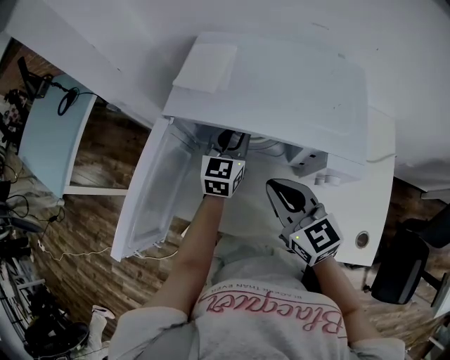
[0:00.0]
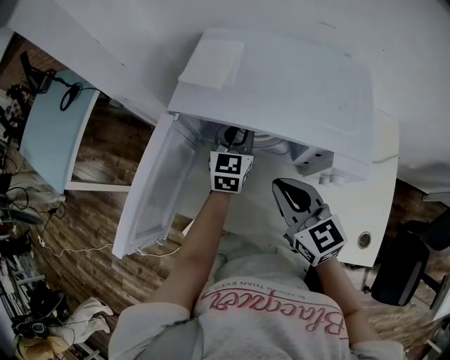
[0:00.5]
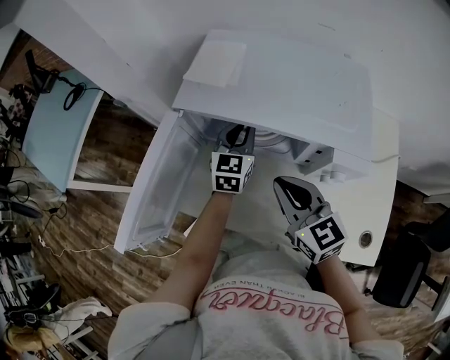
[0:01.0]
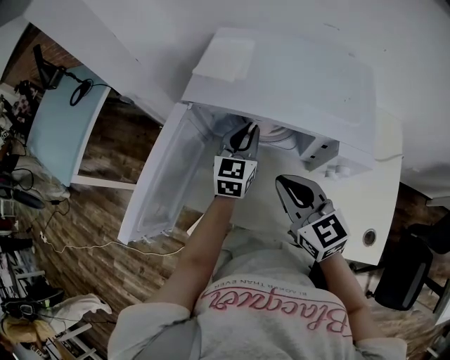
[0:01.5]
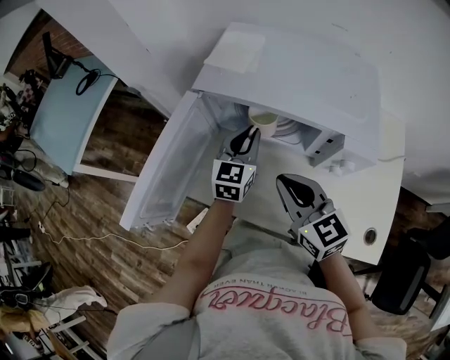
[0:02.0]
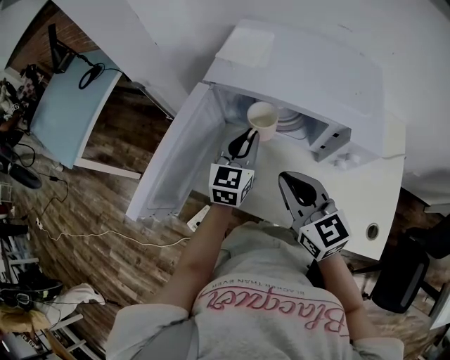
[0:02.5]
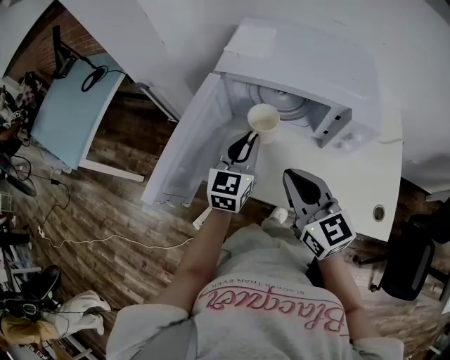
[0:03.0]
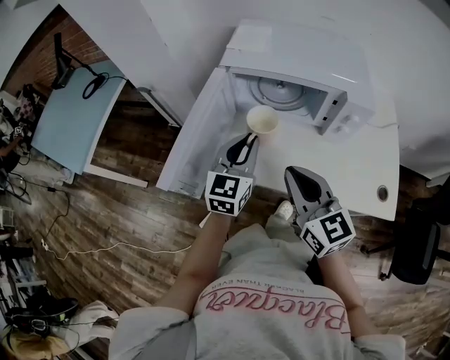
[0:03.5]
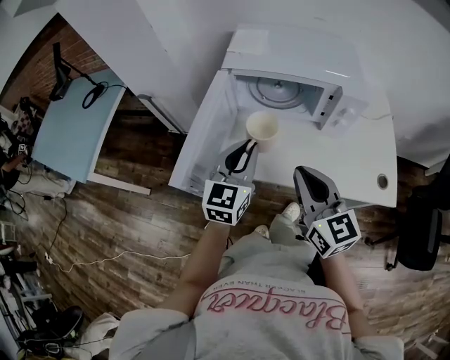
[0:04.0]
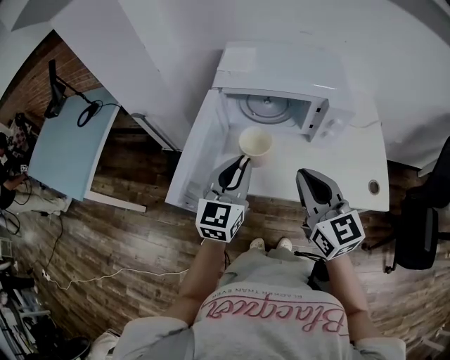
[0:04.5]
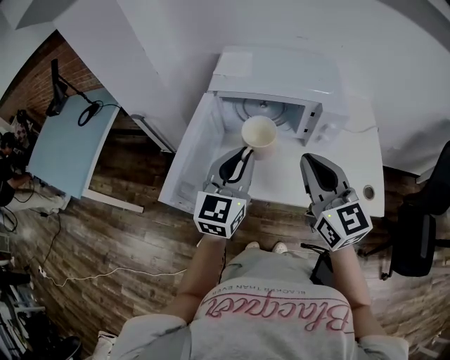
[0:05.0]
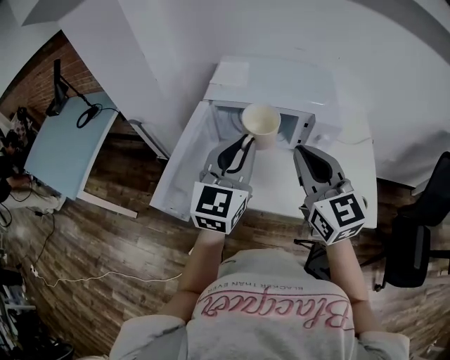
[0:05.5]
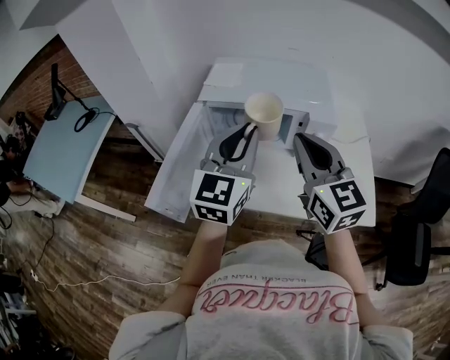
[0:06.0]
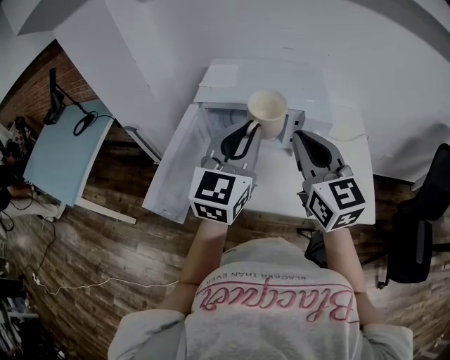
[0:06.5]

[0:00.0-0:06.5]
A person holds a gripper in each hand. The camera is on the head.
0:00.0 to 0:02.0: The left gripper moves backward, roughly 5 cm.
0:02.0 to 0:04.5: The left gripper goes roughly 25 cm backward, upward and to the left, while the right gripper shifts about 15 cm backward and upward, and changes its angle by approximately 20 degrees.
0:04.5 to 0:06.5: The left gripper is displaced upward and to the right by about 15 cm. The right gripper heads upward, forward and to the right, covering approximately 10 cm.

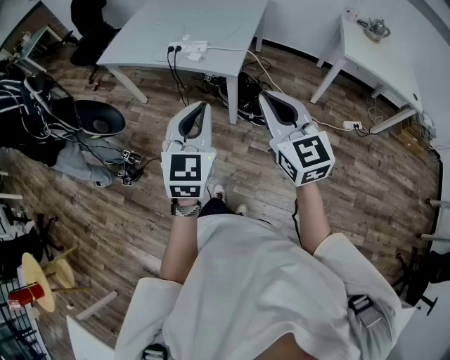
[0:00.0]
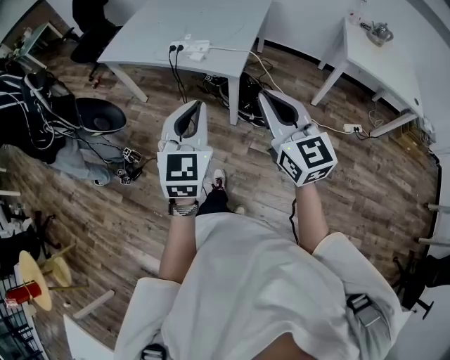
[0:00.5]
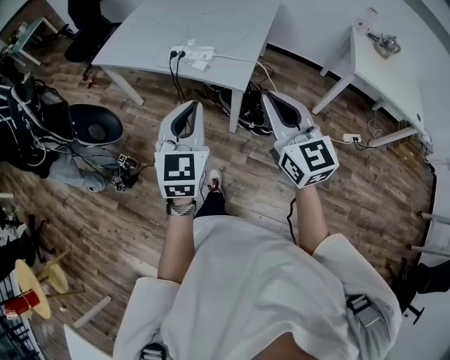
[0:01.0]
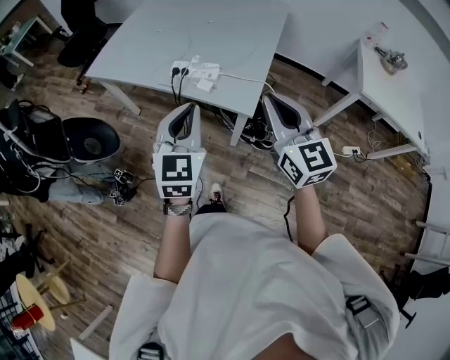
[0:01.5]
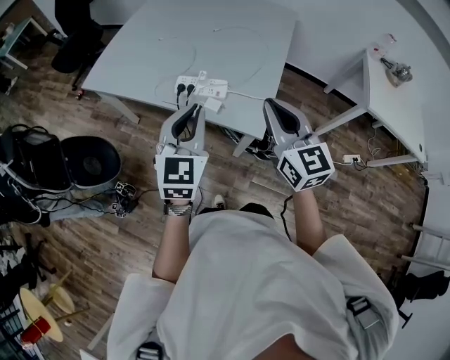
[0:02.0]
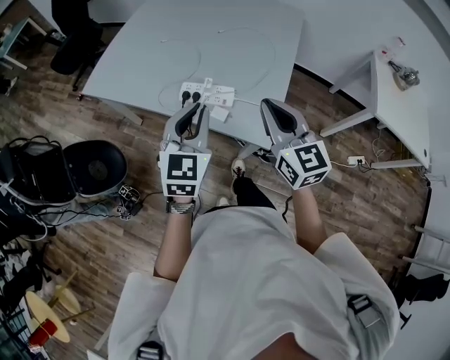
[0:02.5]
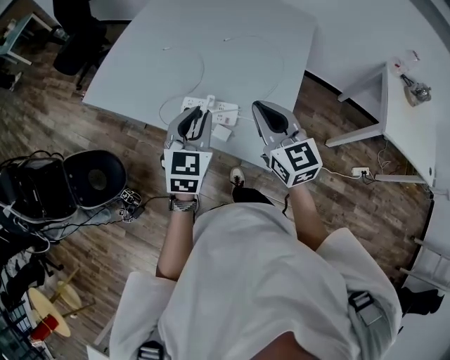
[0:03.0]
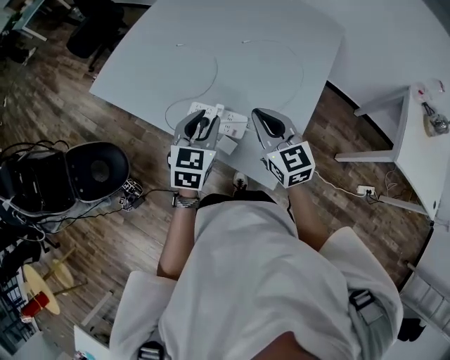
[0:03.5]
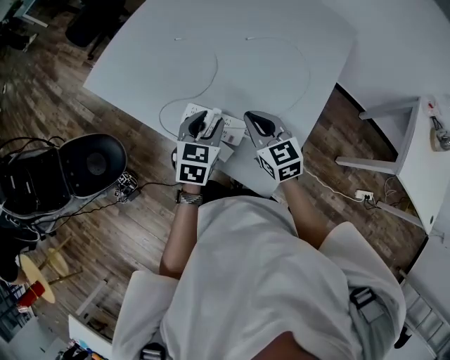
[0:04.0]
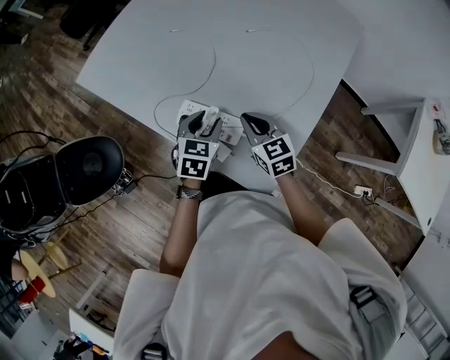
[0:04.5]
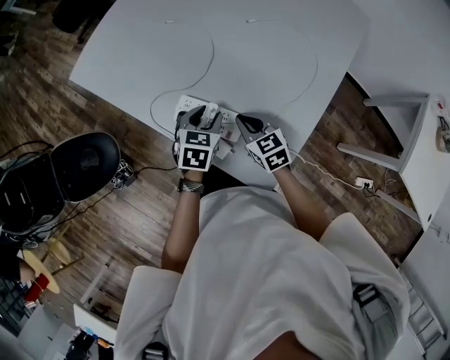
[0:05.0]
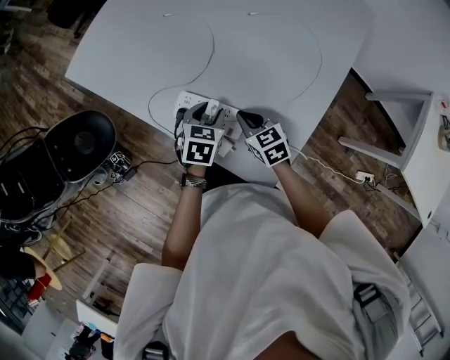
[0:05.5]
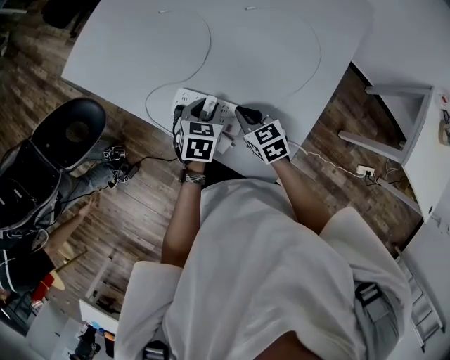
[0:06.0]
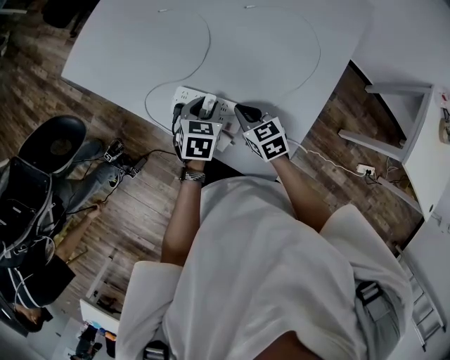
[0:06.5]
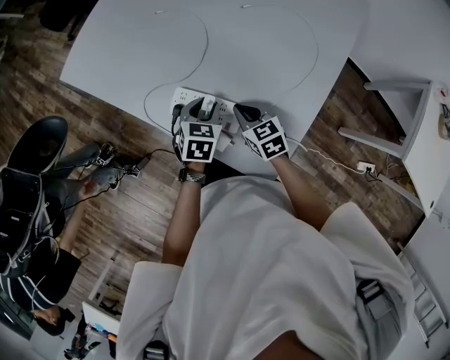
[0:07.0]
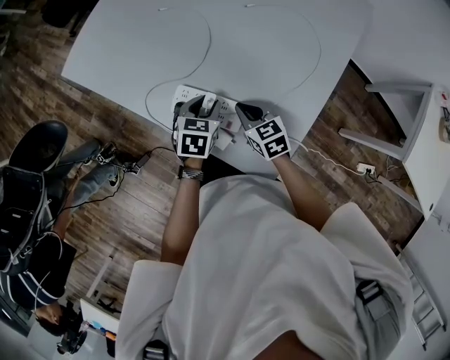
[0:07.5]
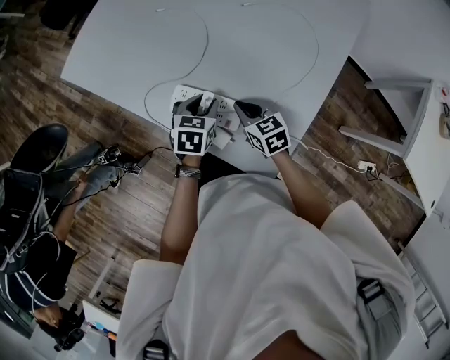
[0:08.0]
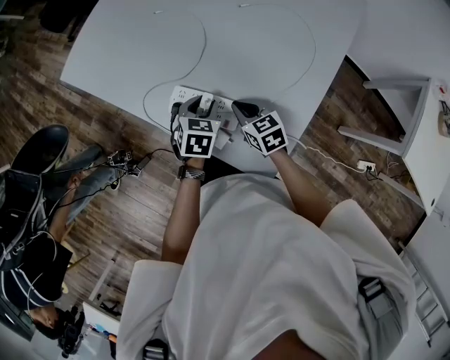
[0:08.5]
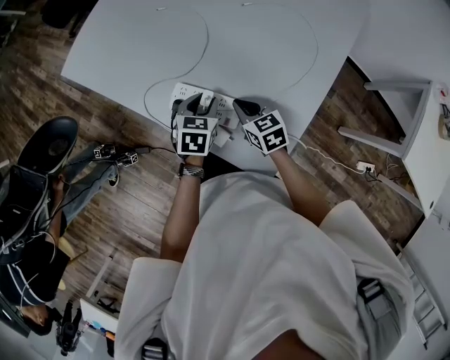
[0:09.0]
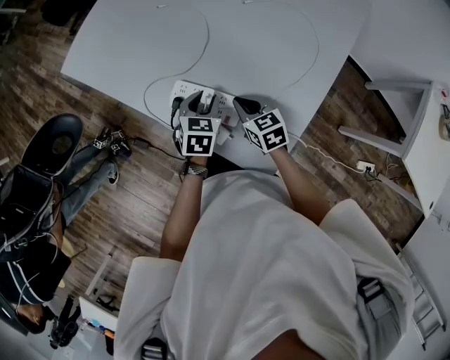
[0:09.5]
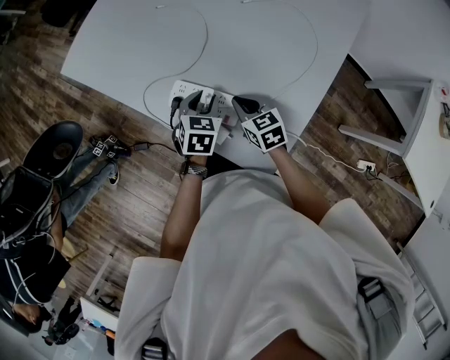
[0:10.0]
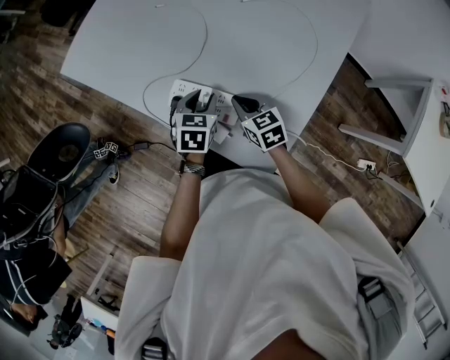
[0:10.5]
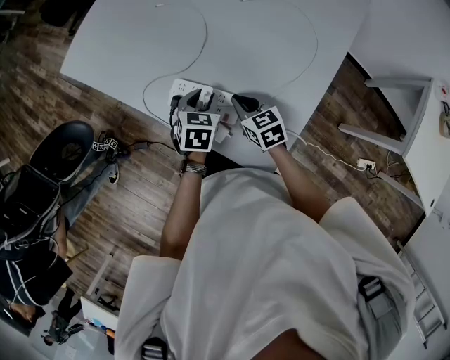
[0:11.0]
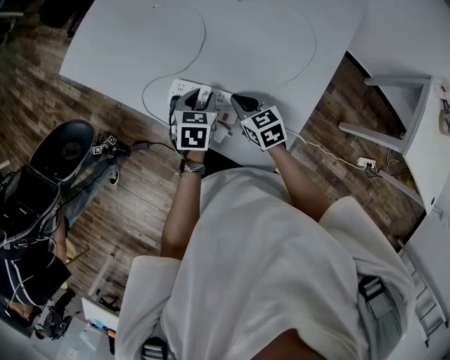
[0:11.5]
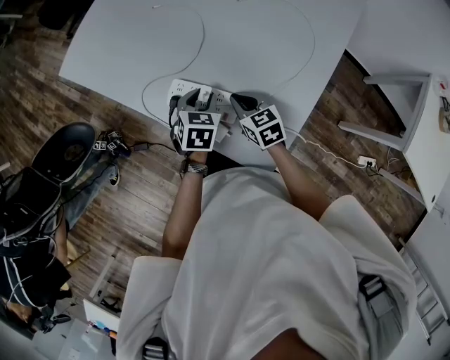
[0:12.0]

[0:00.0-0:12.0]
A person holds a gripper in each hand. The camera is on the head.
0:00.0 to 0:02.0: Both grippers travel together forward, some 35 cm.
0:02.0 to 0:04.0: The two grippers go about 35 cm forward and downward. The left gripper turns by about 30 degrees, and opens its fingers, while the right gripper turns by approximately 30 degrees.
0:04.0 to 0:06.0: The grippers both shift downward by approximately 15 cm. The right gripper turns by approximately 20 degrees.
0:06.0 to 0:12.0: There are only small adjustments of the grippers.

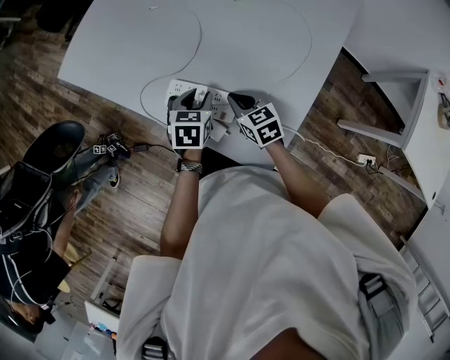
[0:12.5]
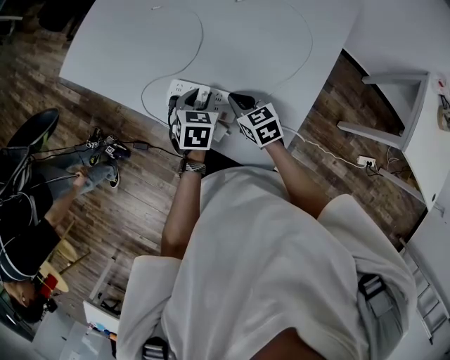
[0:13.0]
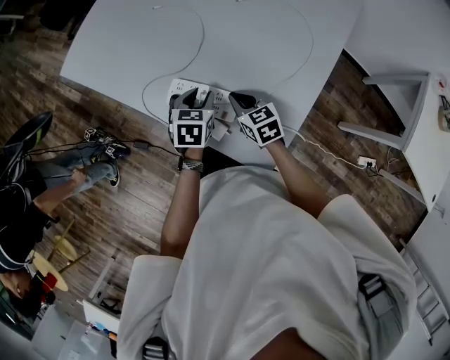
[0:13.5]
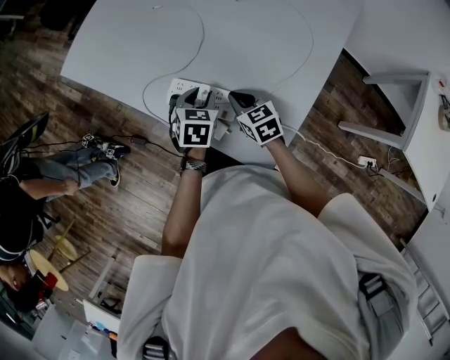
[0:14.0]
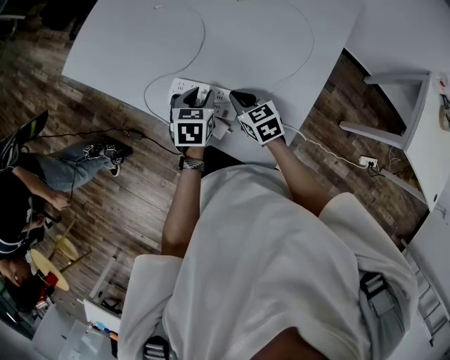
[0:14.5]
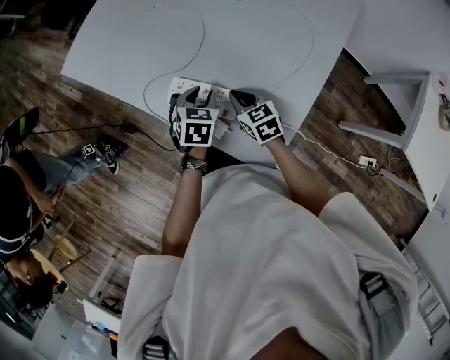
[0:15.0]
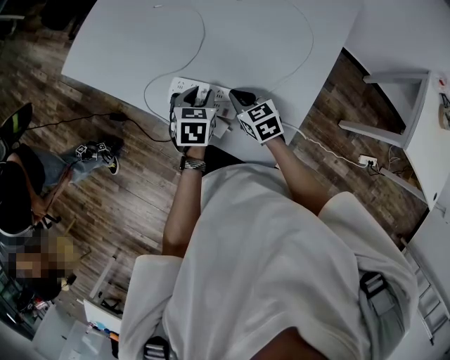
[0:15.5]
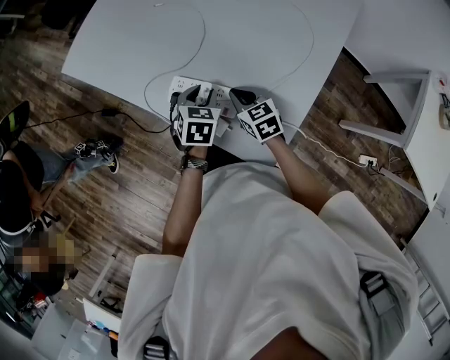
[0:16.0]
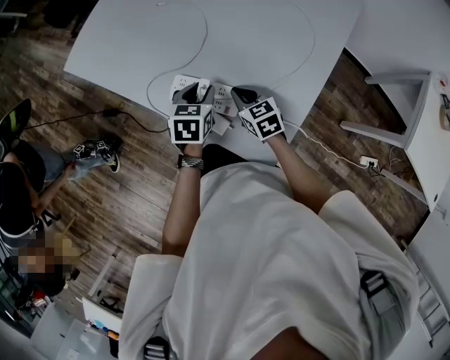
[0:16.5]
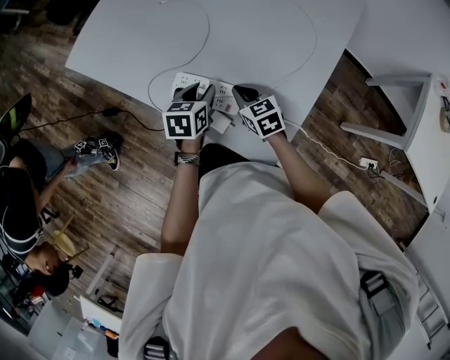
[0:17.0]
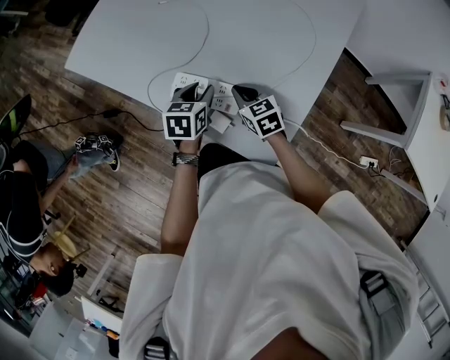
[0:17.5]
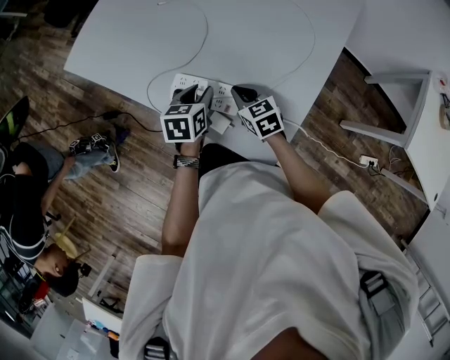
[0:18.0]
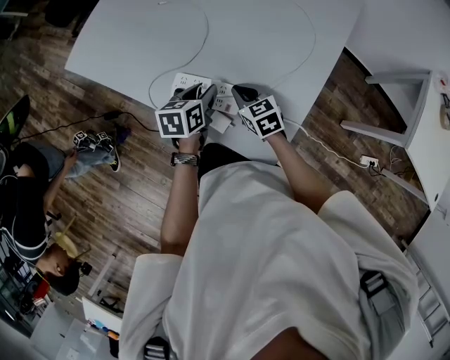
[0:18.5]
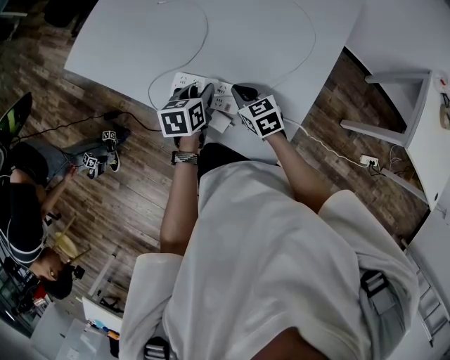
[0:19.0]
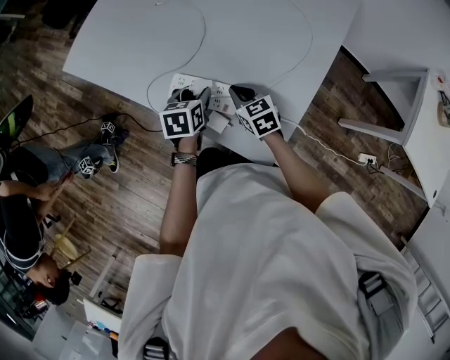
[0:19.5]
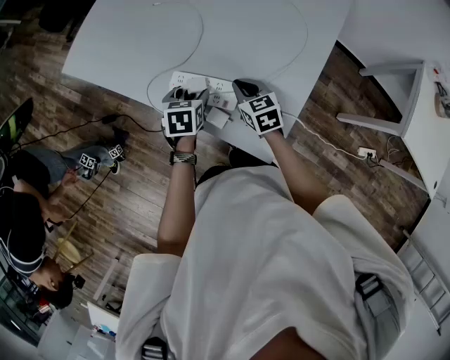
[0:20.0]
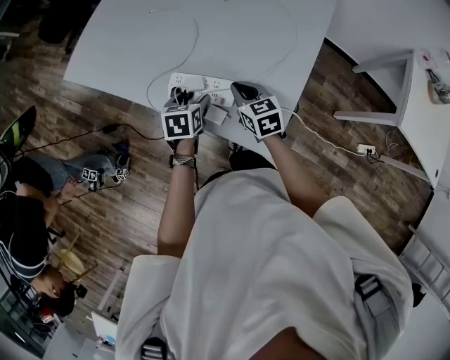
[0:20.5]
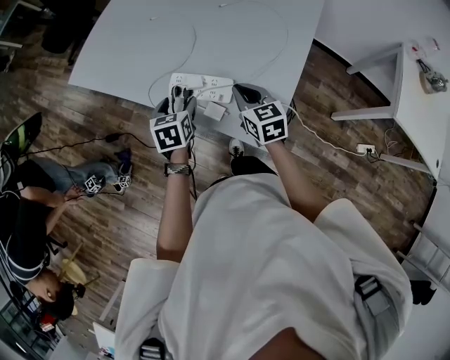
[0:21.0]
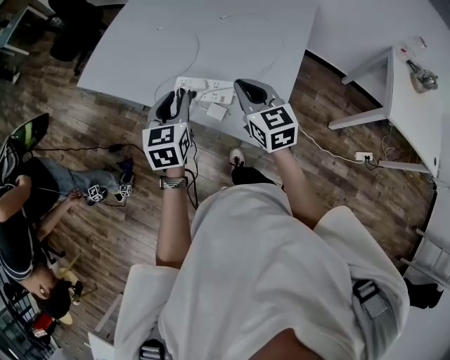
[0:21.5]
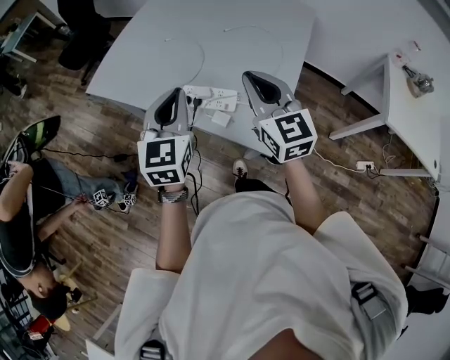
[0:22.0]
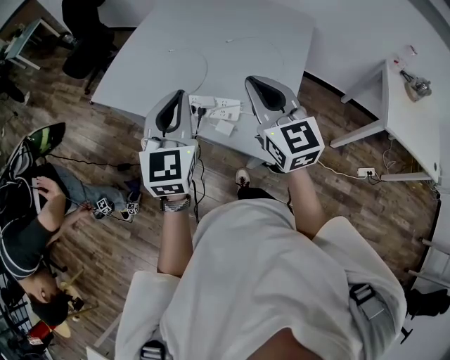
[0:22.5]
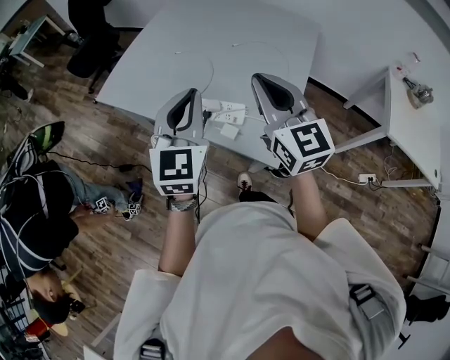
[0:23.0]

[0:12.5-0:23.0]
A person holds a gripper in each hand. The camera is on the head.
0:12.5 to 0:16.5: The grippers move only a little.
0:19.0 to 0:21.0: The right gripper travels upward and backward by approximately 15 cm. Meanwhile the left gripper travels backward, to the left and upward by some 10 cm, and opens its fingers.
0:21.0 to 0:23.0: Both grippers travel together upward, approximately 30 cm. The right gripper tips its fingers upward by some 30 degrees. The left gripper angles its fingers upward, by approximately 40 degrees, and closes up.
